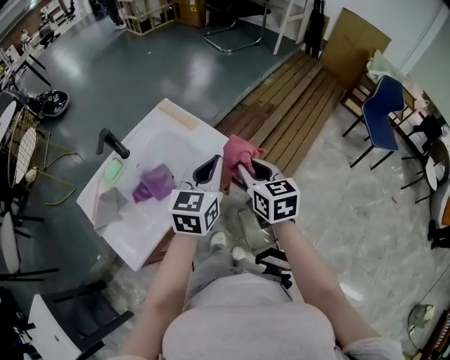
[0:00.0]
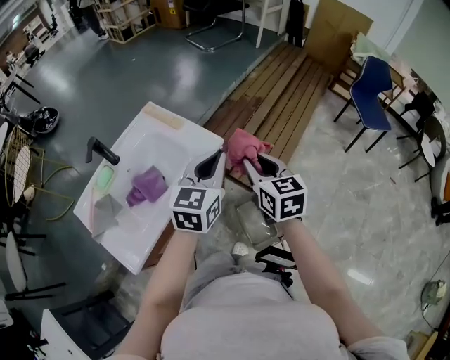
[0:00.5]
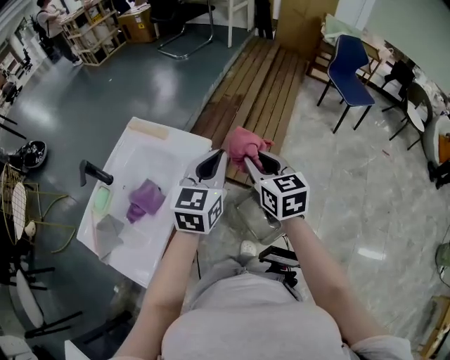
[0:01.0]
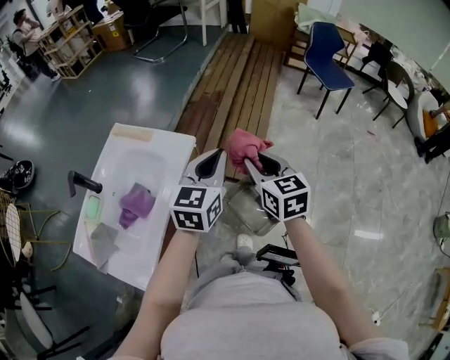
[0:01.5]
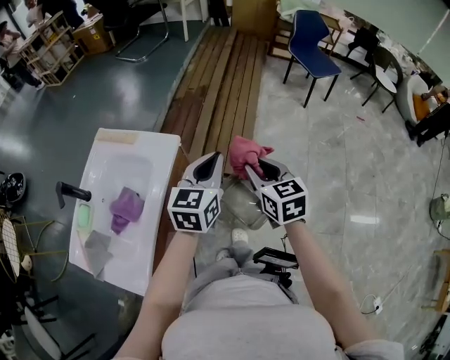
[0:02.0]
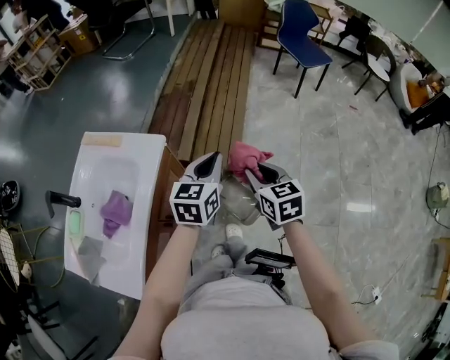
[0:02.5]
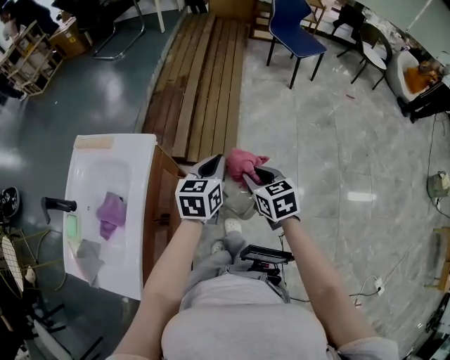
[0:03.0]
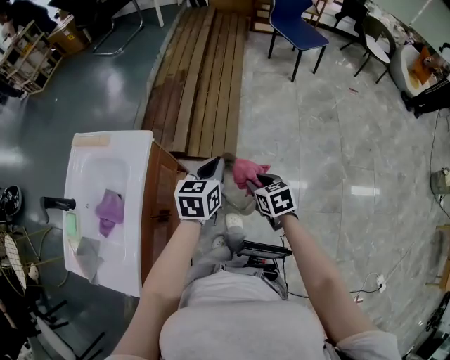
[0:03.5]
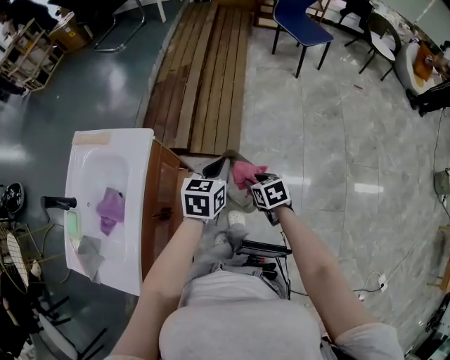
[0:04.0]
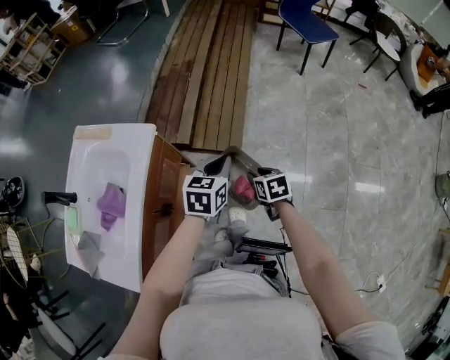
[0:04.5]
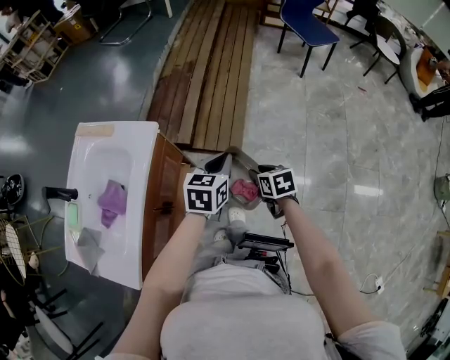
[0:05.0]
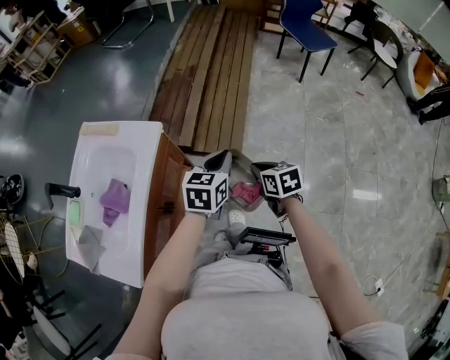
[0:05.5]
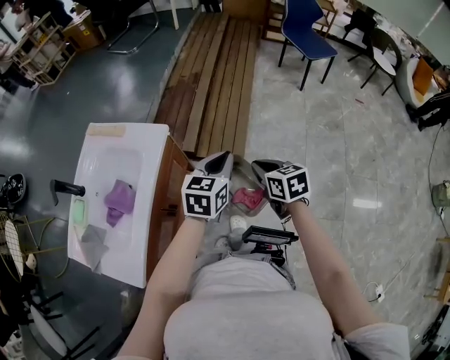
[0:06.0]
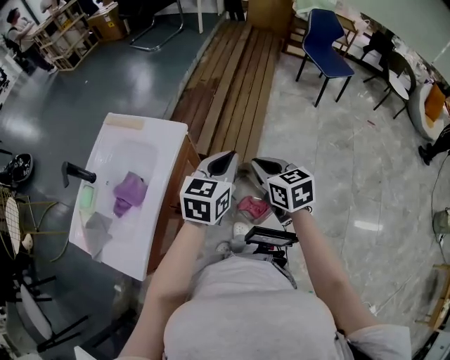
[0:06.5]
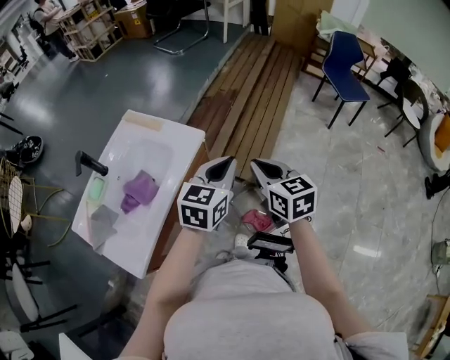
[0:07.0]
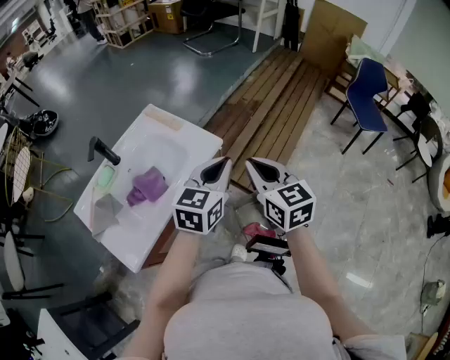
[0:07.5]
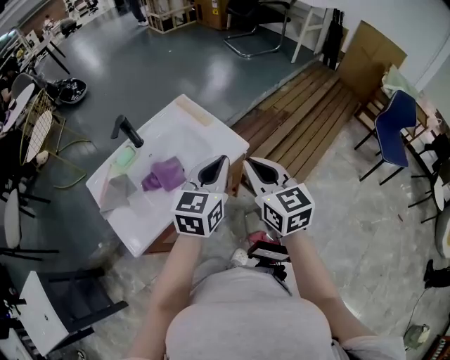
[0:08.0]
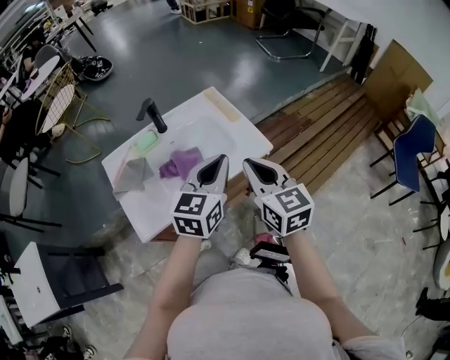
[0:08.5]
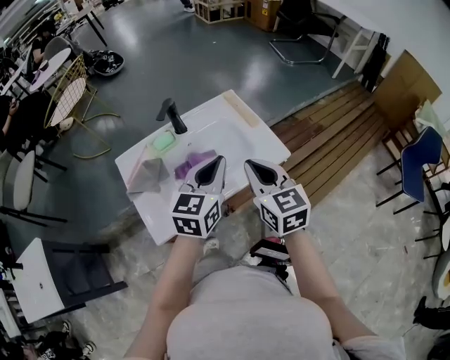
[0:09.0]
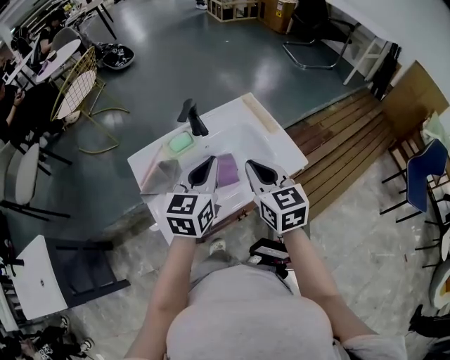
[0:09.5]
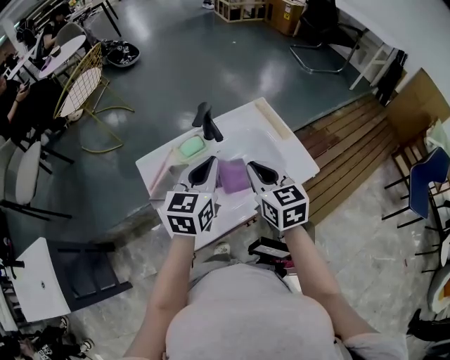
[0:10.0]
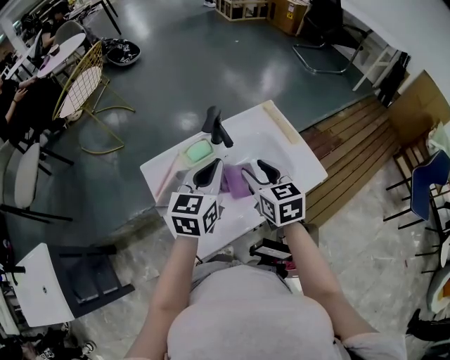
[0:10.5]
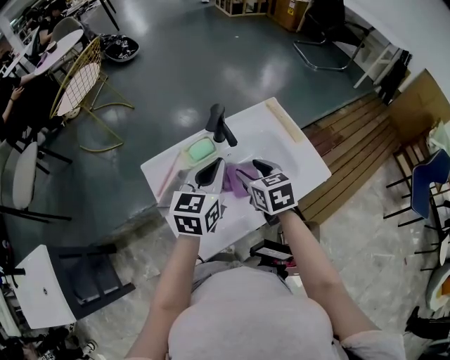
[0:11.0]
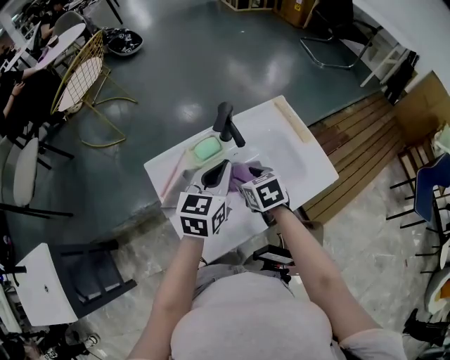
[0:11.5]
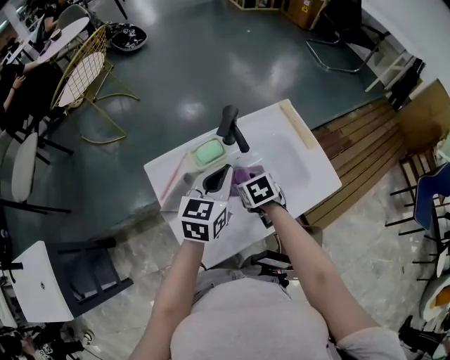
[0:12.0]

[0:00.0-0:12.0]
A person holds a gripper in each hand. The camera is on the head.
0:00.0 to 0:02.0: The right gripper ends up approximately 20 cm from where it was, and turns by some 20 degrees; the left gripper ends up about 15 cm from where it was, and swivels approximately 30 degrees.
0:02.0 to 0:04.0: The right gripper moves downward, about 25 cm, and swivels approximately 30 degrees. Meanwhile the left gripper is displaced downward and to the right by roughly 15 cm, and swivels some 20 degrees.
0:04.0 to 0:06.0: The right gripper moves upward, roughly 15 cm, and closes up; the left gripper travels upward by approximately 5 cm.
0:06.0 to 0:08.0: The right gripper shifts by approximately 30 cm, and changes its angle by some 40 degrees. The left gripper shifts by approximately 25 cm, and turns by roughly 40 degrees.
0:08.0 to 0:10.0: The left gripper is displaced to the left by roughly 25 cm. Meanwhile the right gripper is displaced to the left and forward by about 25 cm.
0:10.0 to 0:12.0: The right gripper travels downward by roughly 20 cm, points its fingers about 40 degrees further downward, and opens its fingers. The left gripper travels downward and forward by approximately 10 cm.

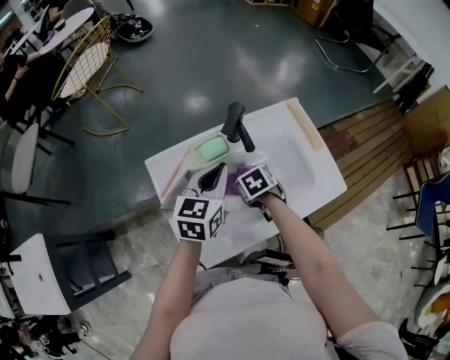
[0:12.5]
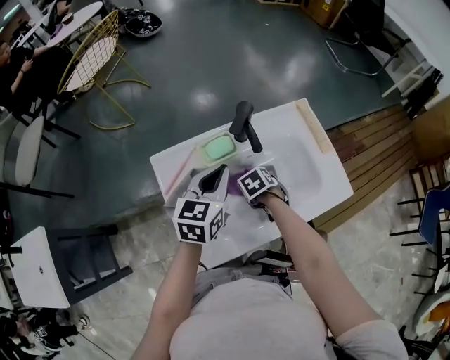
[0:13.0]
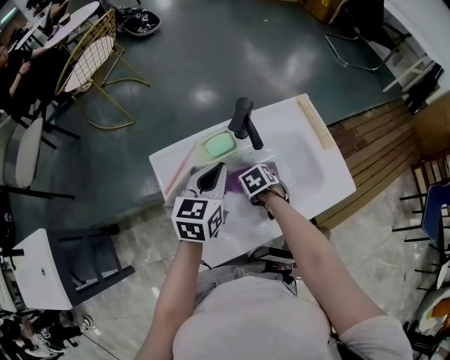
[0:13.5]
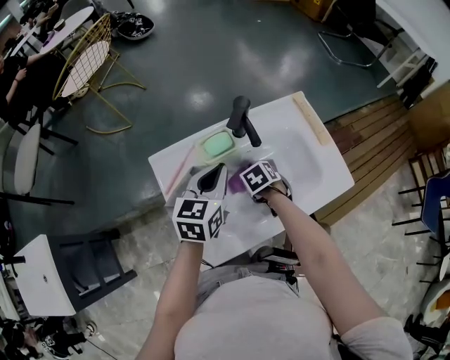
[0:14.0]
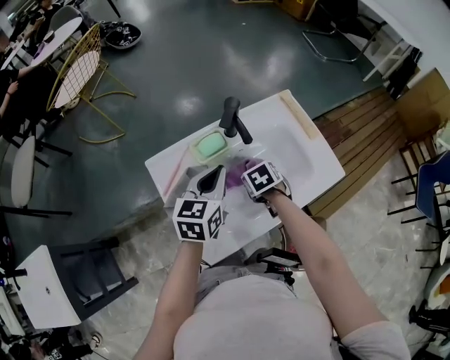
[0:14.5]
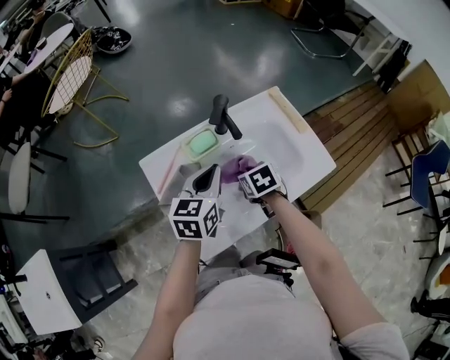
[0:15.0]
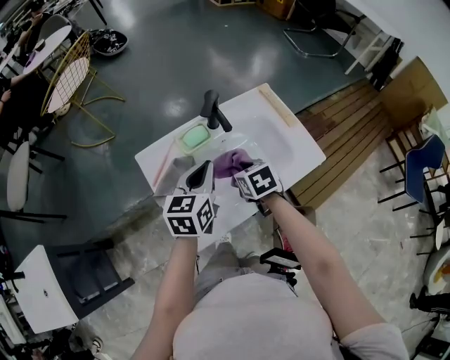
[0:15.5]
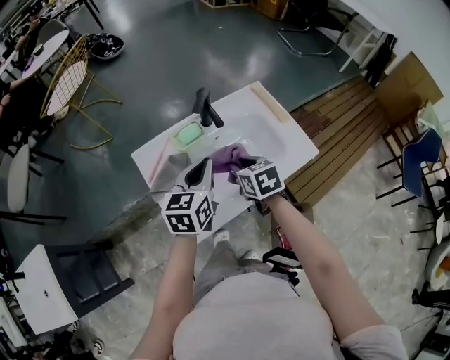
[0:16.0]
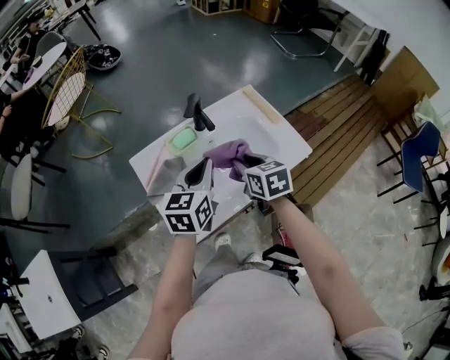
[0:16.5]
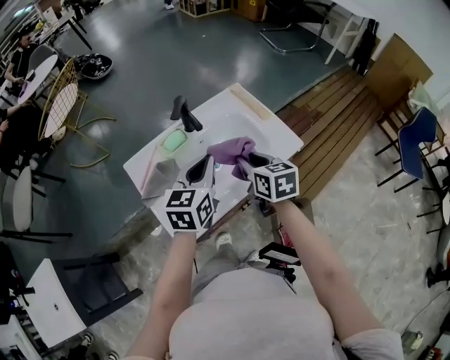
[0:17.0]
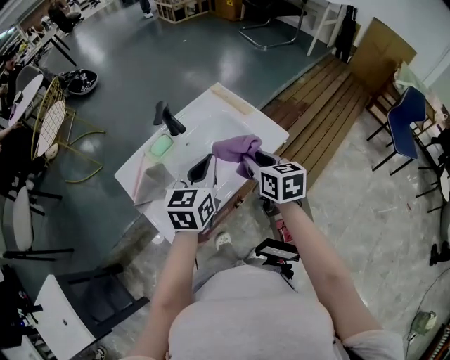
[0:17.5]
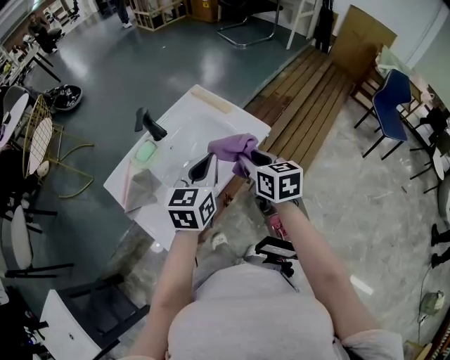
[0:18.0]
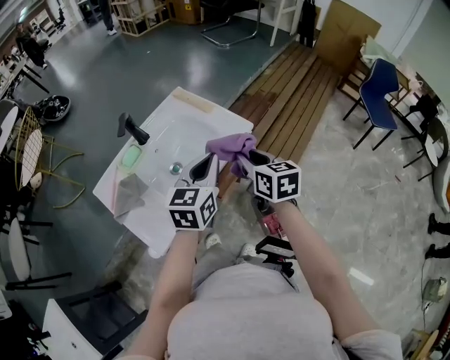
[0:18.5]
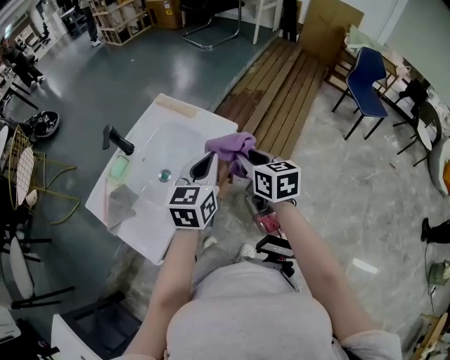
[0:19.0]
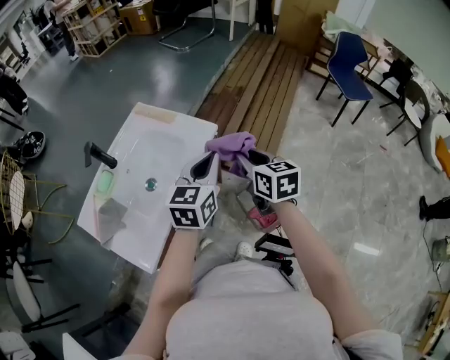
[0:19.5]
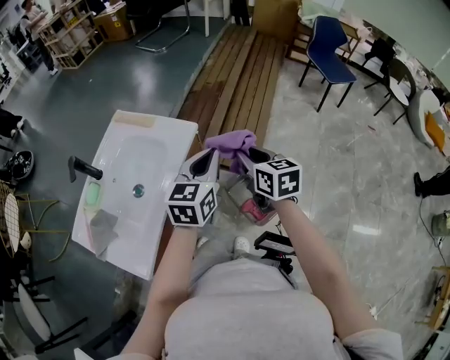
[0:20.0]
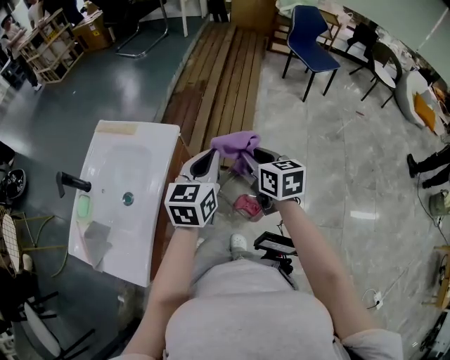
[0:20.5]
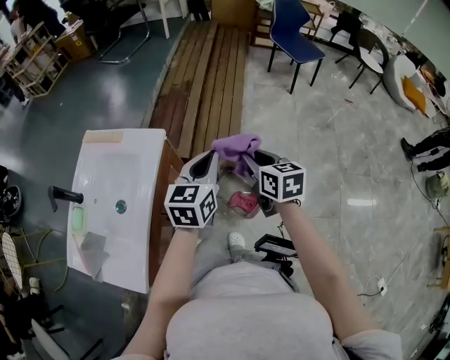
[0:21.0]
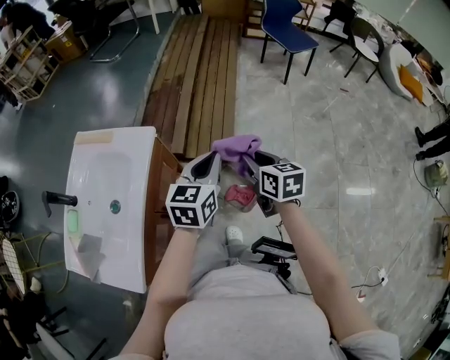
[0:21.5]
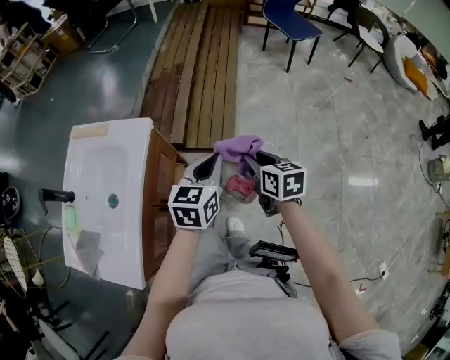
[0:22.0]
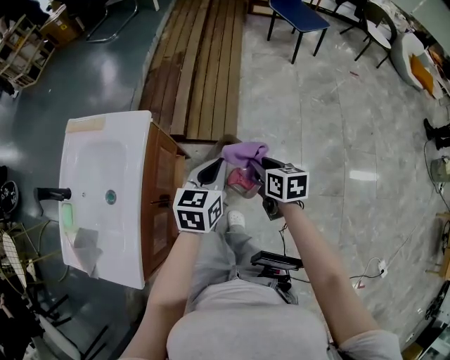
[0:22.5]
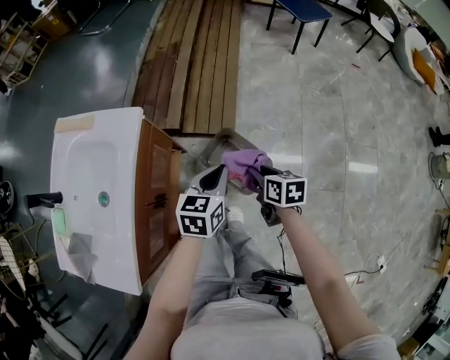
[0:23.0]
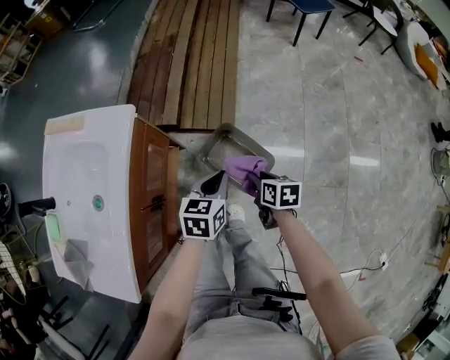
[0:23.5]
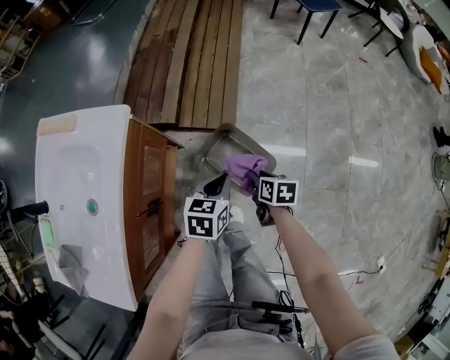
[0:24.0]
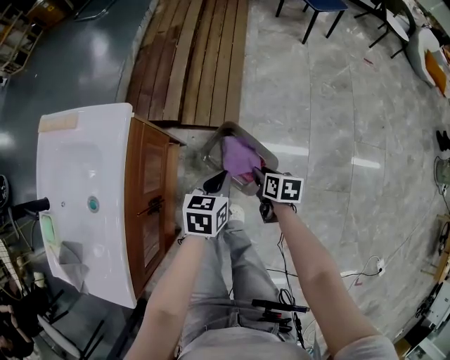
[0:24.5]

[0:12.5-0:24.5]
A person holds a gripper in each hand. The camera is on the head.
0:12.5 to 0:14.5: The right gripper closes its fingers.
0:14.5 to 0:16.5: The right gripper moves upward, roughly 15 cm, and points its fingers roughly 30 degrees further upward; the left gripper heads upward and backward, covering some 10 cm.
0:16.5 to 0:18.5: The two grippers go about 20 cm to the right. The left gripper turns by roughly 20 degrees. Meanwhile the right gripper rotates some 30 degrees.
0:18.5 to 0:20.5: Both grippers travel together to the right, some 20 cm. The left gripper swivels roughly 20 degrees; the right gripper changes its angle by some 30 degrees.
0:20.5 to 0:22.5: Both grippers travel together downward and to the right, about 15 cm.
0:22.5 to 0:24.5: Both grippers move downward, approximately 20 cm.

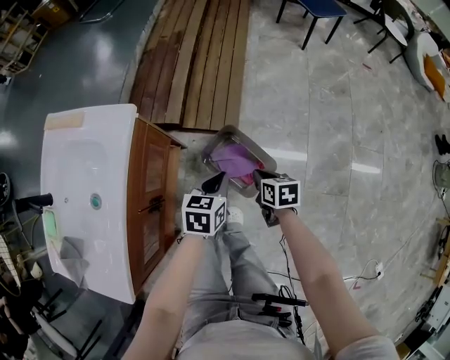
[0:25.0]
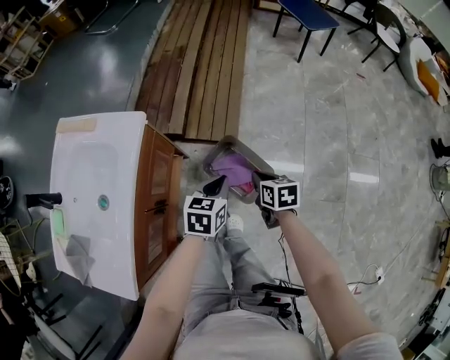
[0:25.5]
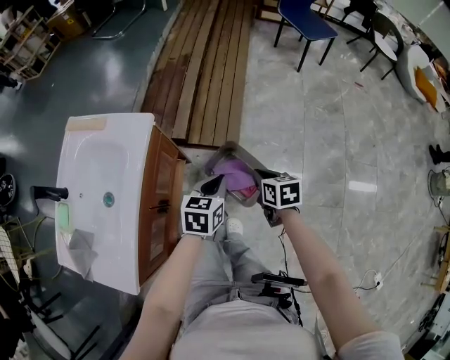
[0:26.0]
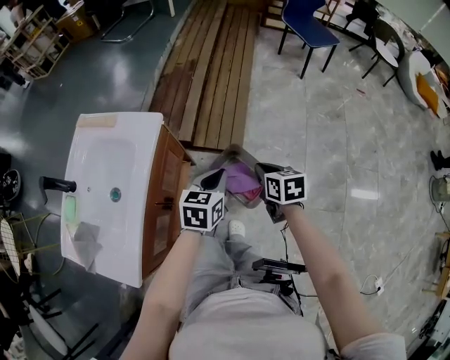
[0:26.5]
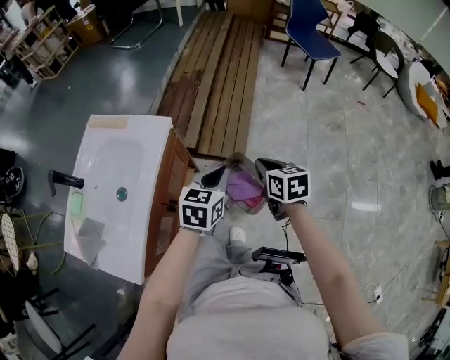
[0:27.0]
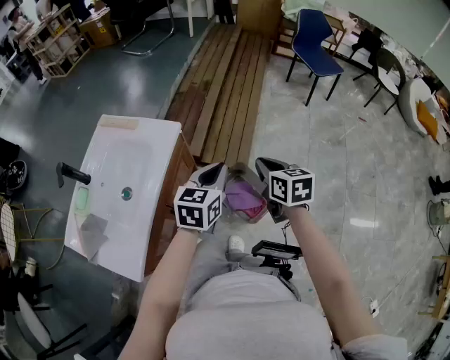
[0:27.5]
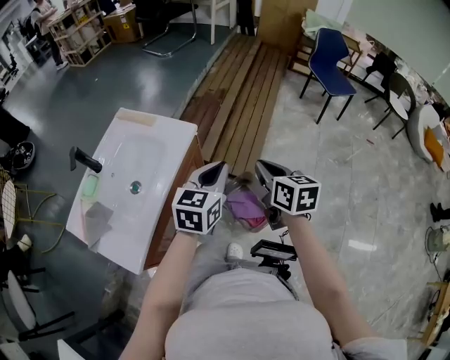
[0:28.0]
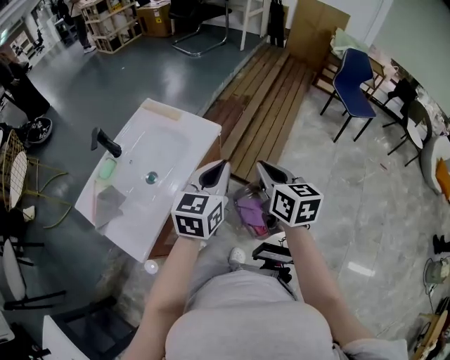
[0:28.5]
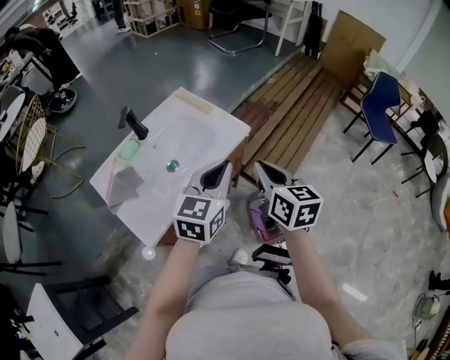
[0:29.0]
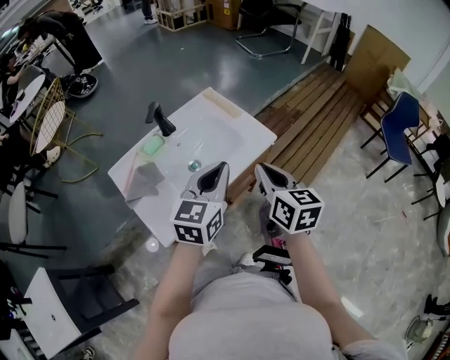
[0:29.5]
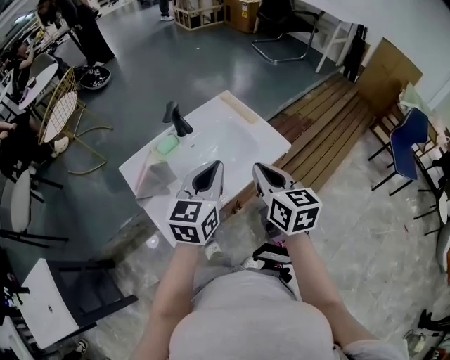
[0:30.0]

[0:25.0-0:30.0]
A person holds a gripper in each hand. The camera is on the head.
0:25.0 to 0:27.5: Both grippers move upward, some 25 cm. The left gripper rotates about 20 degrees, while the right gripper turns by roughly 30 degrees.
0:27.5 to 0:30.0: The left gripper changes place by some 35 cm, and changes its angle by about 40 degrees. The right gripper changes place by roughly 35 cm, and swivels roughly 40 degrees.
